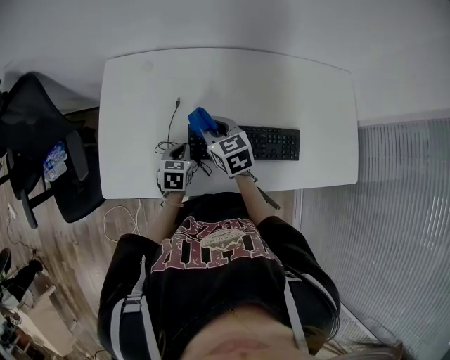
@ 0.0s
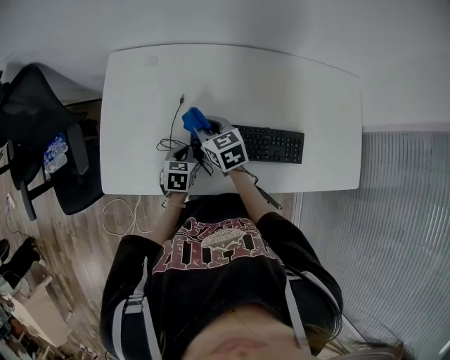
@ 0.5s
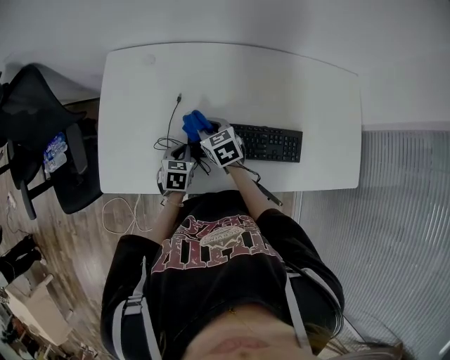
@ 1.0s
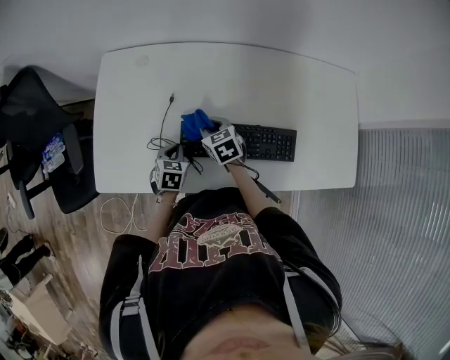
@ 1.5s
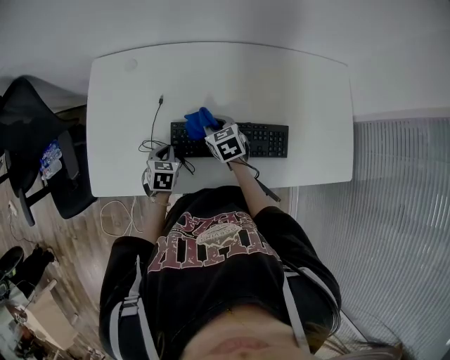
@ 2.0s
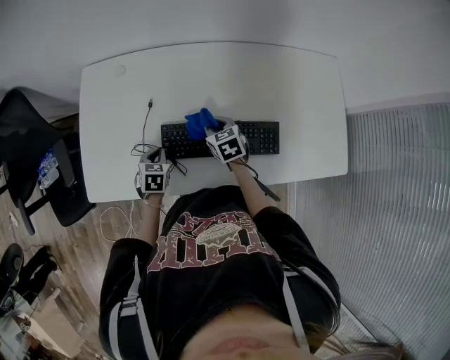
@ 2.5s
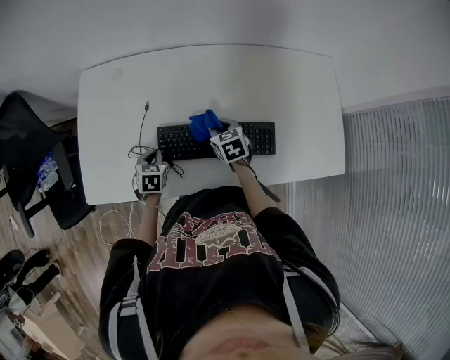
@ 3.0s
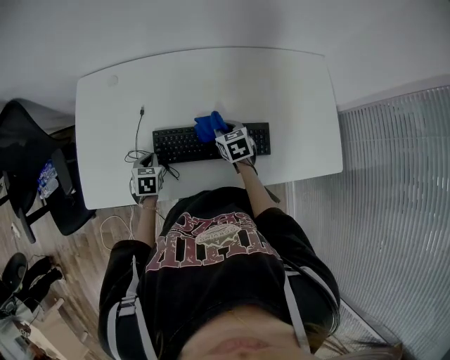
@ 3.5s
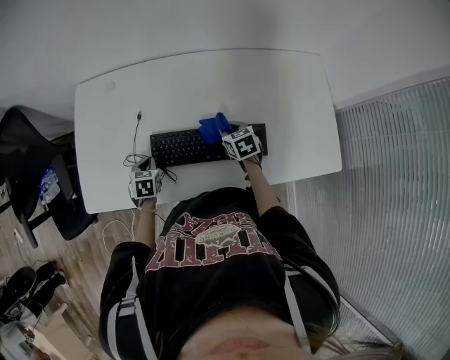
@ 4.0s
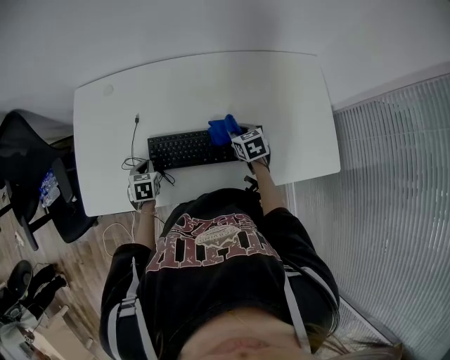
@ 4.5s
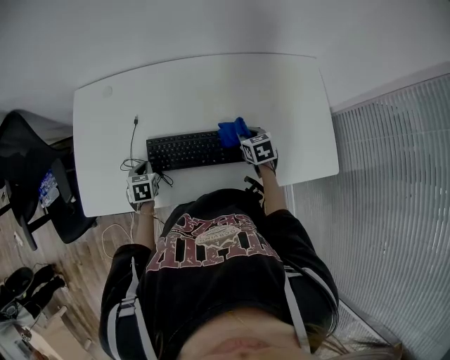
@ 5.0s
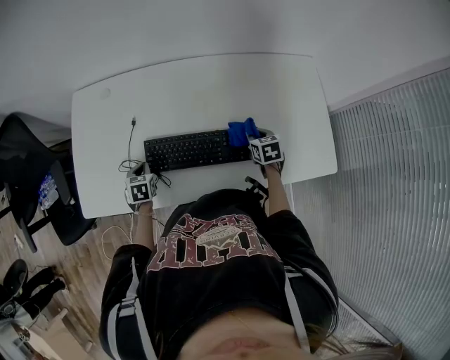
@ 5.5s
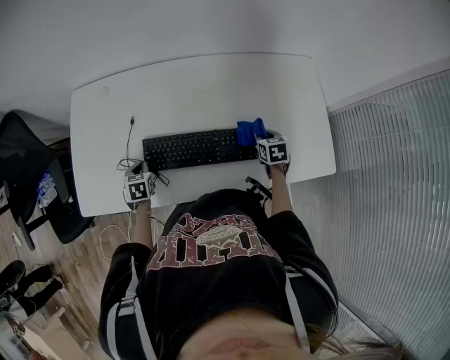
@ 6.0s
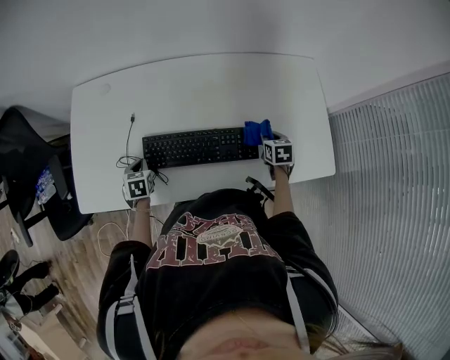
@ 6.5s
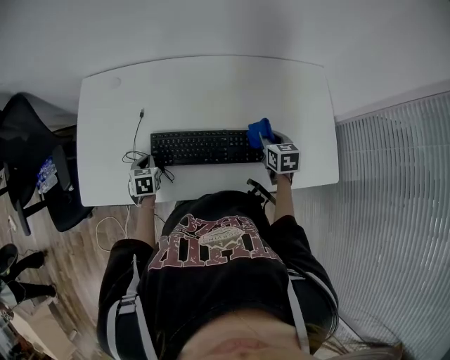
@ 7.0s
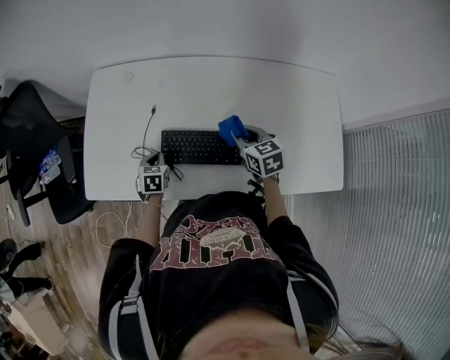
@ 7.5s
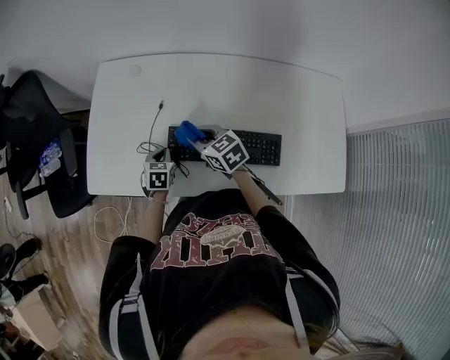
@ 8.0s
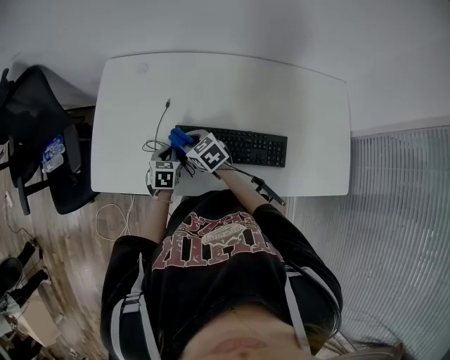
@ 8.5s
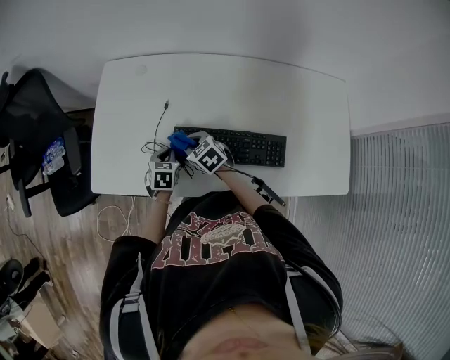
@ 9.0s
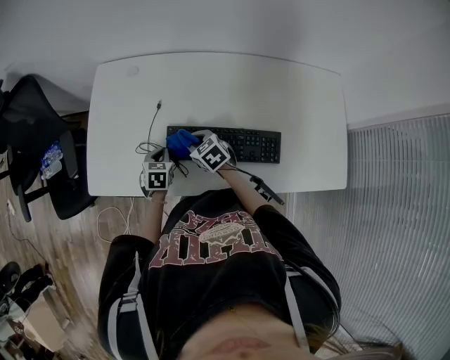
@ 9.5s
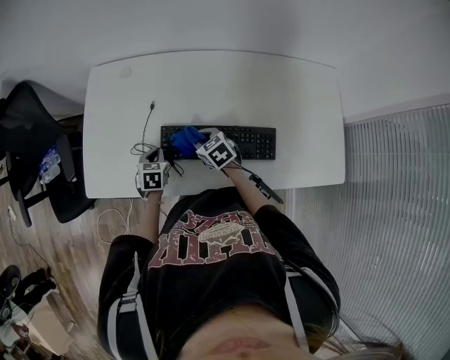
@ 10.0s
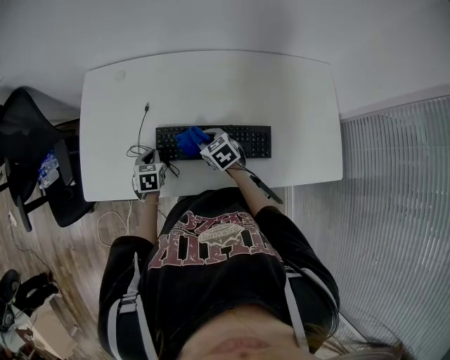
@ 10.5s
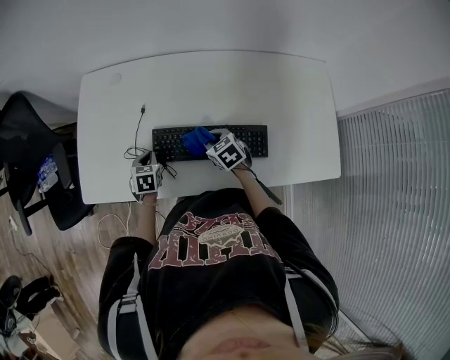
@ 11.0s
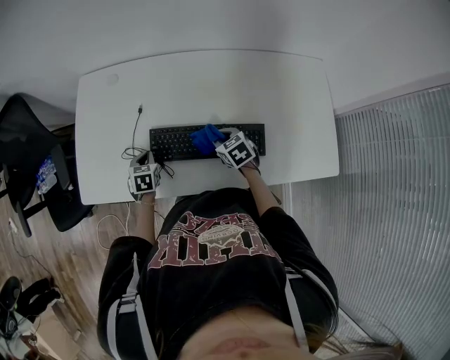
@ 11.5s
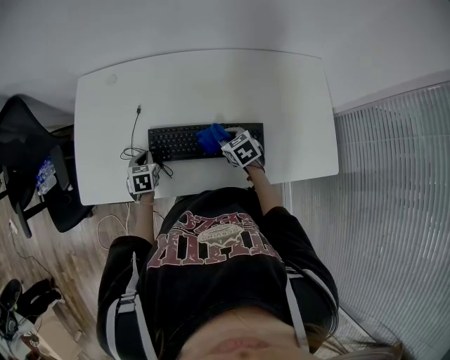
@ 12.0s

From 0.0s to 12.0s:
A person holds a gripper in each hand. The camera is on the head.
From 0.0s to 2.0s: The right gripper is displaced downward and to the right by about 15 cm.
From 2.0s to 4.0s: The right gripper shifts roughly 15 cm to the right.
From 4.0s to 6.0s: The right gripper heads to the right, covering about 15 cm.
From 6.0s to 8.0s: The right gripper shifts roughly 35 cm to the left, and changes its angle by some 50 degrees.
From 8.0s to 10.0s: The right gripper goes approximately 10 cm downward.
From 10.0s to 12.0s: The right gripper goes roughly 15 cm to the right and backward.

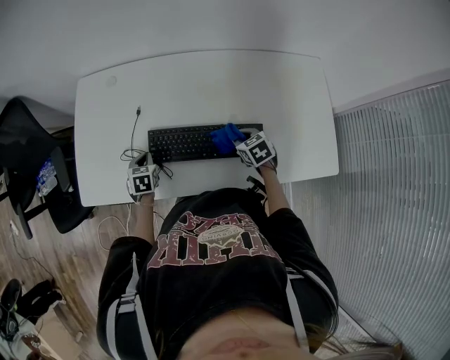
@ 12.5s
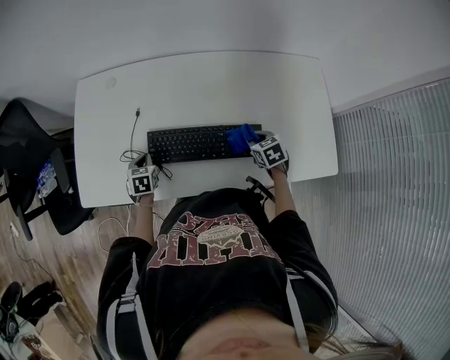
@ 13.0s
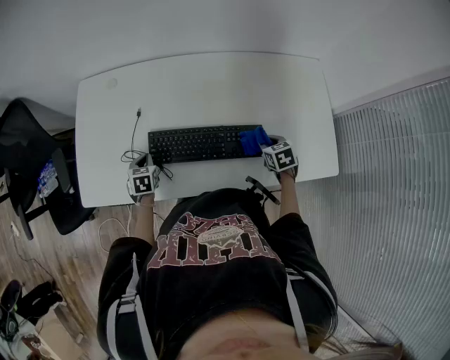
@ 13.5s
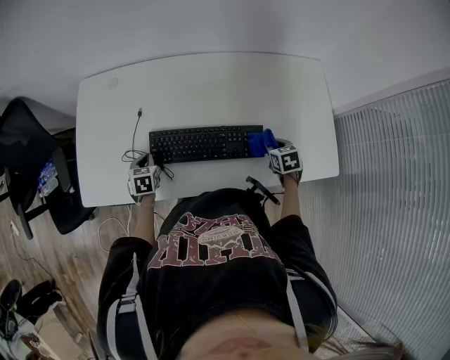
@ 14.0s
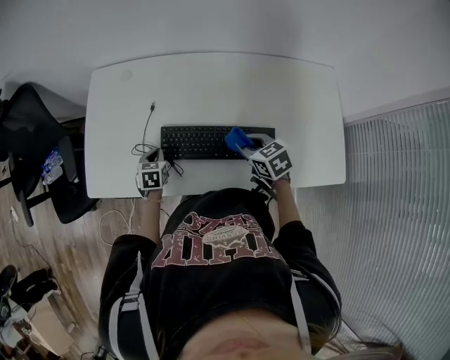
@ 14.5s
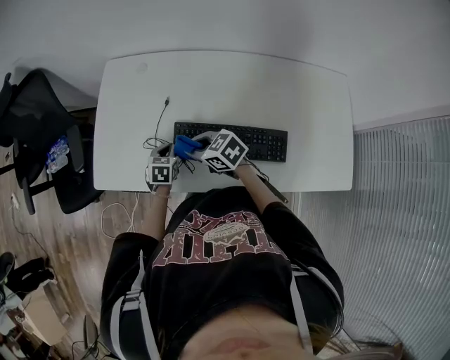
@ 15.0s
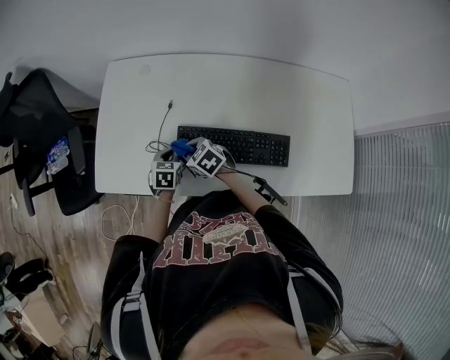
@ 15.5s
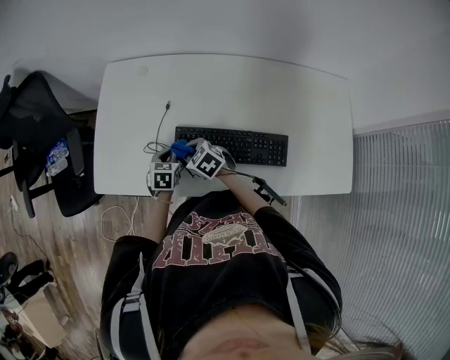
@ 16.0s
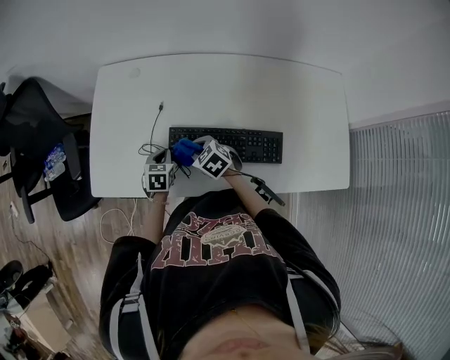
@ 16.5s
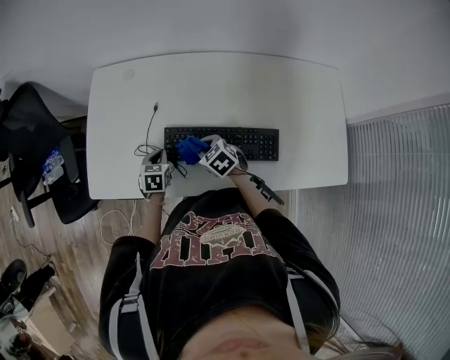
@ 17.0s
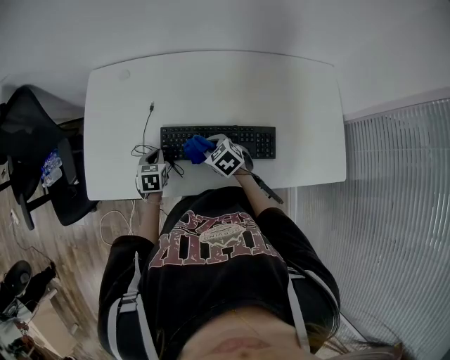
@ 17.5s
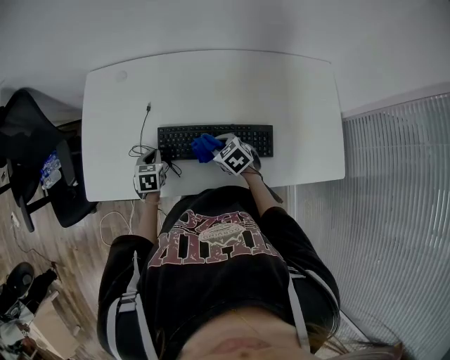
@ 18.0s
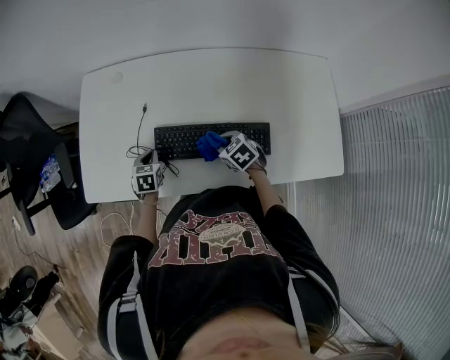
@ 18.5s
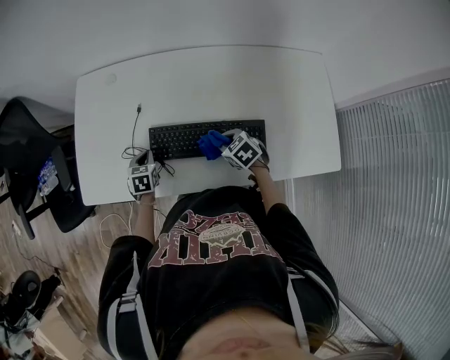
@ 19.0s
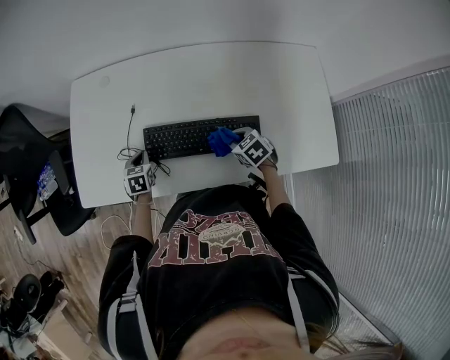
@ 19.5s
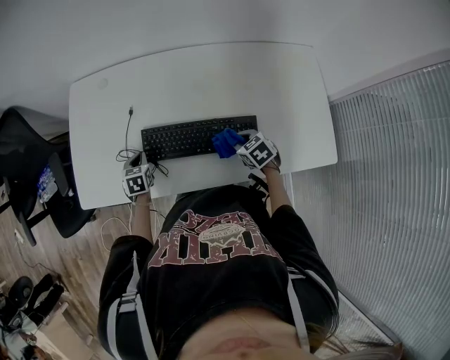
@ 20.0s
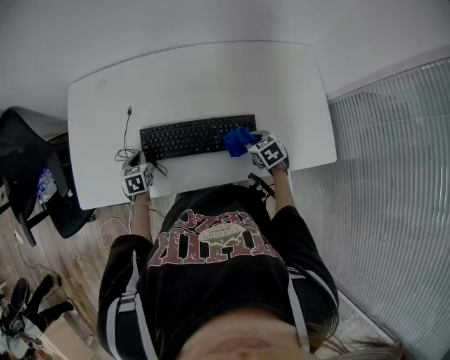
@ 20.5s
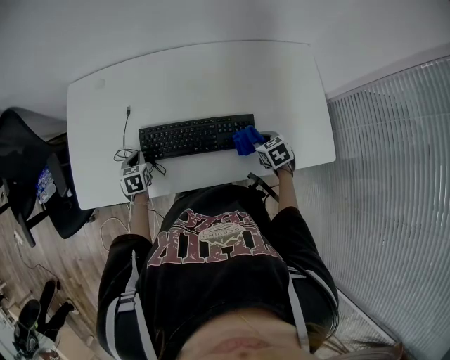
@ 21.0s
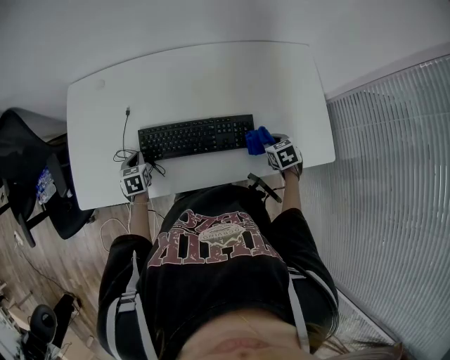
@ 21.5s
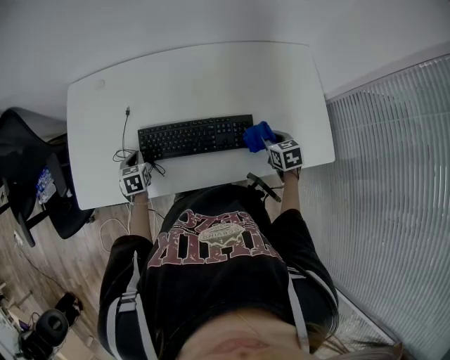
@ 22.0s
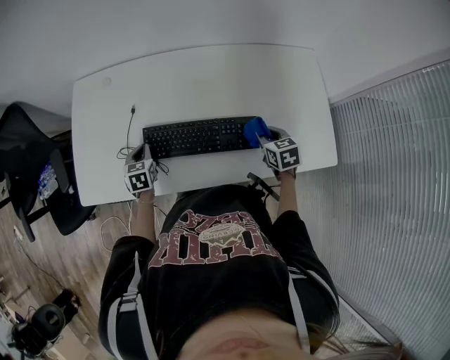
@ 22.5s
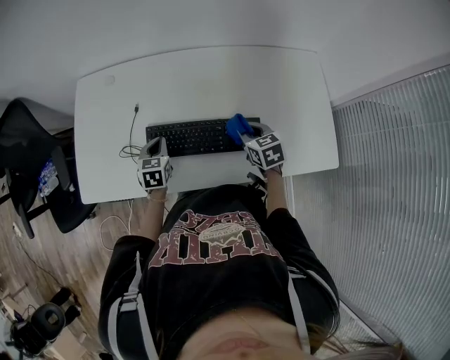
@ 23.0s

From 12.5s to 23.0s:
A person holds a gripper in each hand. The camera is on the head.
From 12.5s to 14.5s: The right gripper travels upward by about 10 cm, and travels to the right and back again, approximately 10 cm each way.
From 14.5s to 16.5s: The right gripper heads to the left, forward and downward, covering some 20 cm, and changes its angle by approximately 20 degrees.
From 16.5s to 19.0s: The right gripper shifts roughly 15 cm to the right and backward.
From 19.0s to 21.0s: The right gripper goes roughly 15 cm to the right and backward, and changes its angle by approximately 20 degrees.
From 21.0s to 23.0s: The left gripper goes about 10 cm to the right and upward. Meanwhile the right gripper travels upward, to the left and forward by approximately 10 cm.

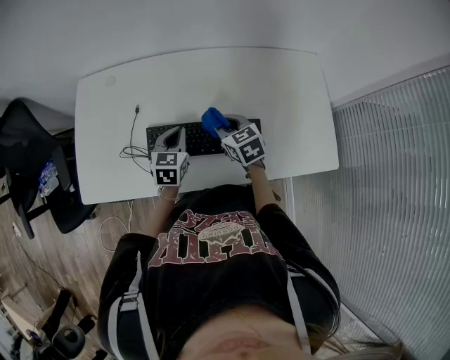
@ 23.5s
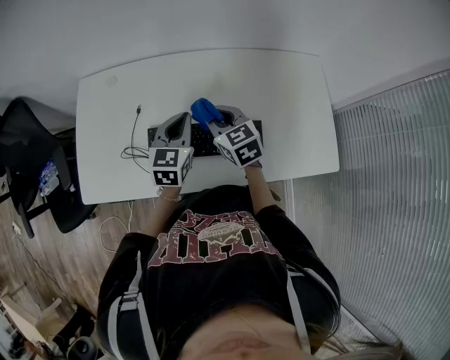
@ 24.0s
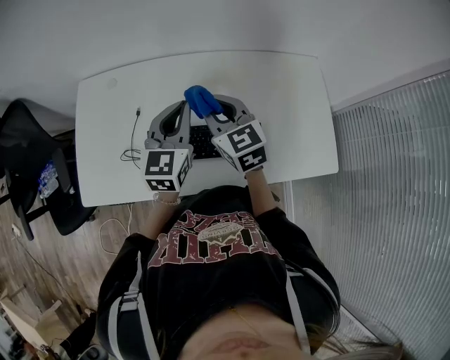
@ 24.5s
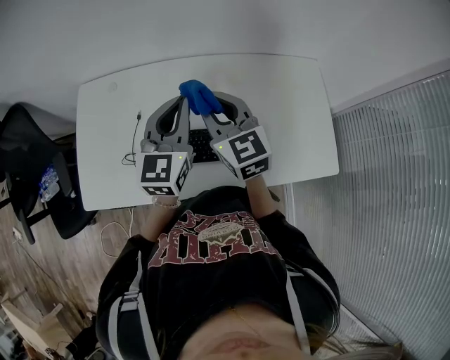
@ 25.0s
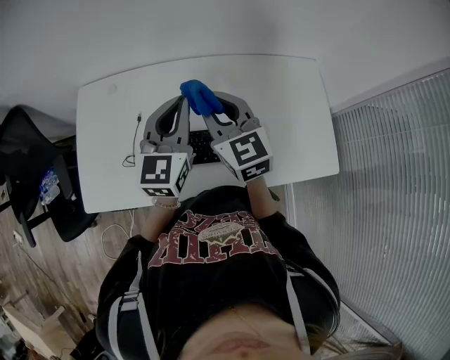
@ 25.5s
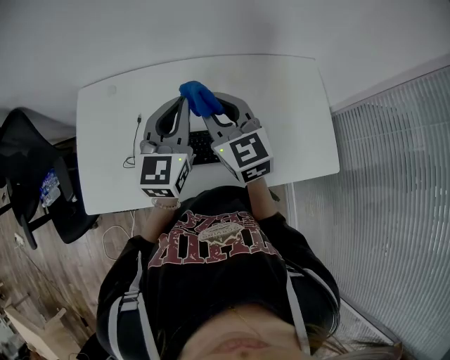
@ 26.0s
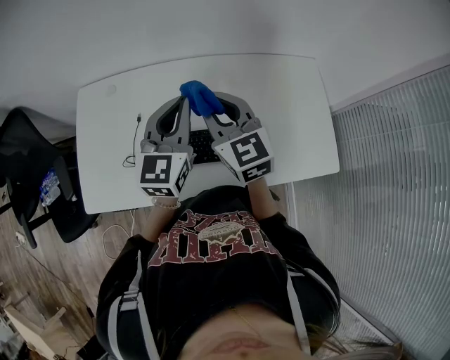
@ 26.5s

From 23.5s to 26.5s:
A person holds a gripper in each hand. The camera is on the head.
From 23.5s to 25.0s: Both grippers move upward, some 20 cm. The right gripper changes its angle by some 30 degrees; the left gripper rotates roughly 30 degrees.
From 25.0s to 26.5s: Both grippers stay about where they are.

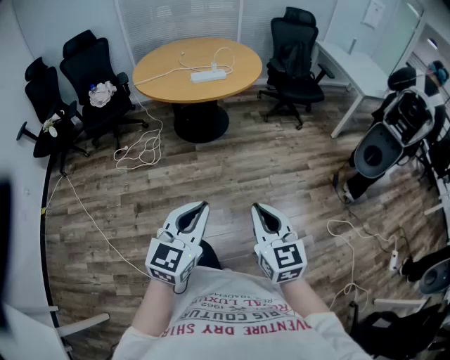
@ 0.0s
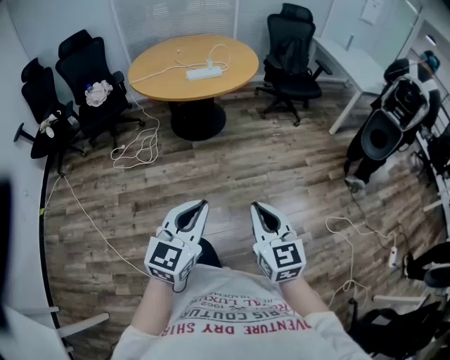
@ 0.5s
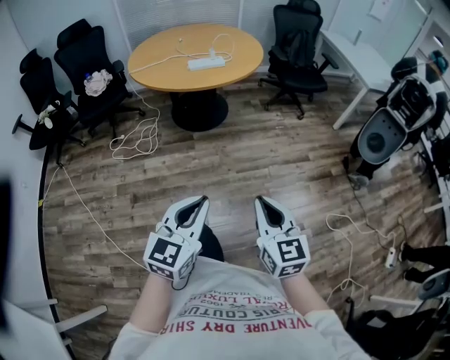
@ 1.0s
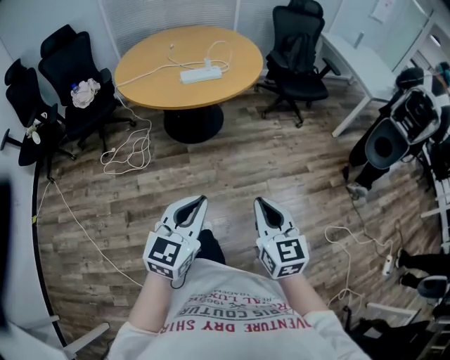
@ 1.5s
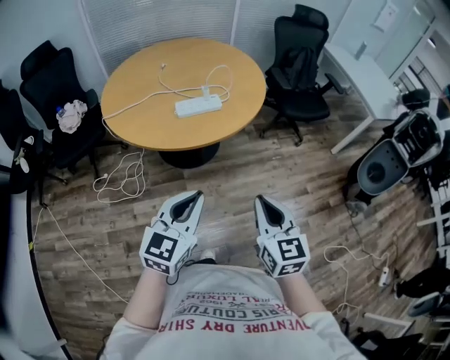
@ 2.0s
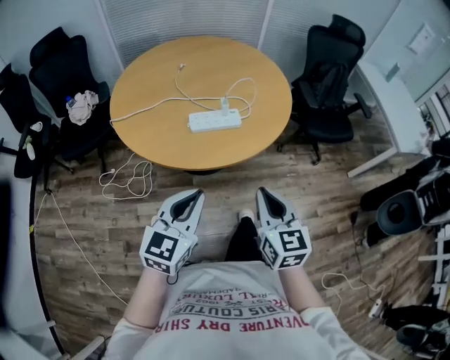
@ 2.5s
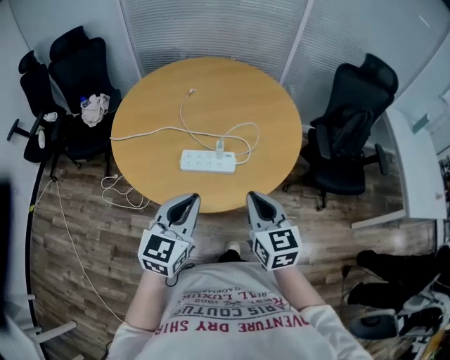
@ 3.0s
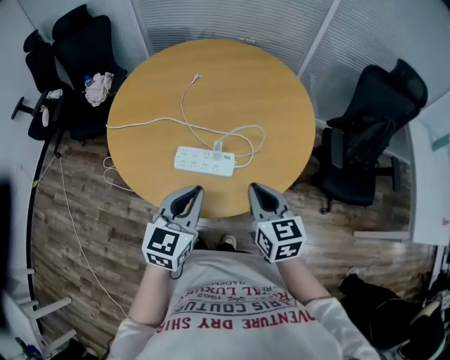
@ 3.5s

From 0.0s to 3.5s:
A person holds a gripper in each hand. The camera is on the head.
From 0.0s to 2.0s: Both grippers move forward, some 40 cm.
From 2.0s to 3.5s: The right gripper ends up about 50 cm from where it was, and turns by about 30 degrees, while the left gripper ends up some 40 cm from where it was, and swivels some 30 degrees.
